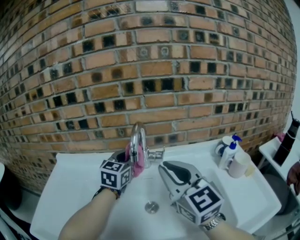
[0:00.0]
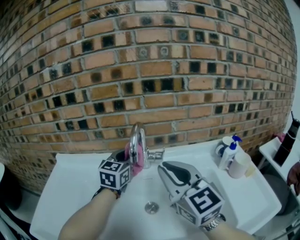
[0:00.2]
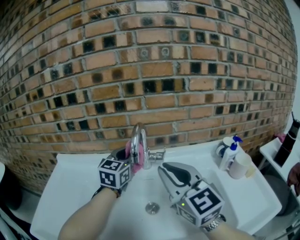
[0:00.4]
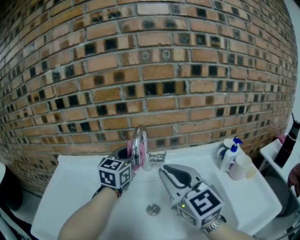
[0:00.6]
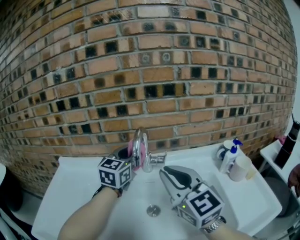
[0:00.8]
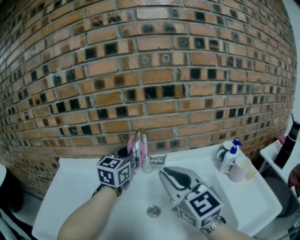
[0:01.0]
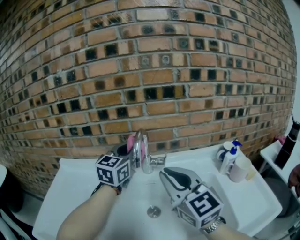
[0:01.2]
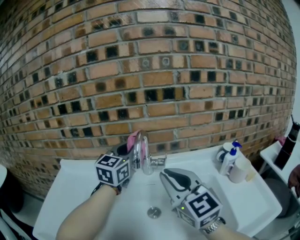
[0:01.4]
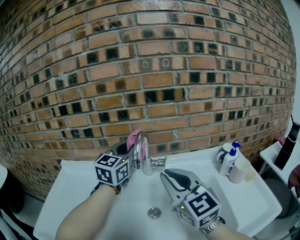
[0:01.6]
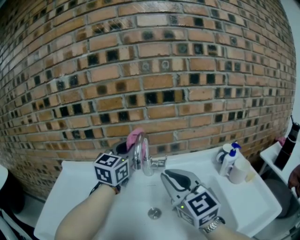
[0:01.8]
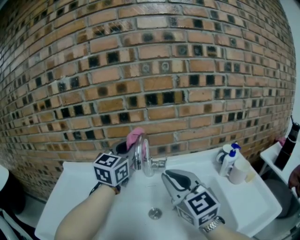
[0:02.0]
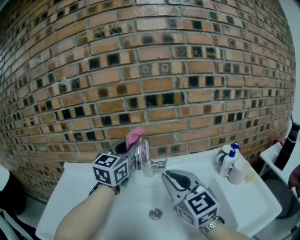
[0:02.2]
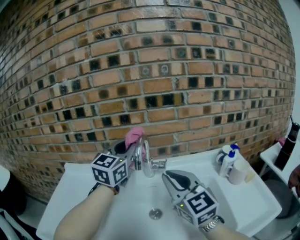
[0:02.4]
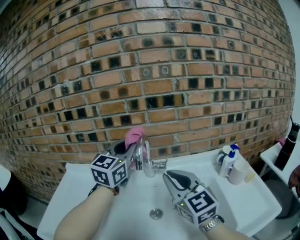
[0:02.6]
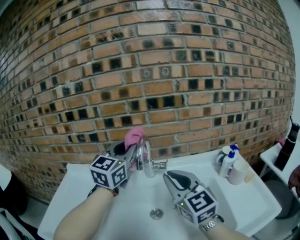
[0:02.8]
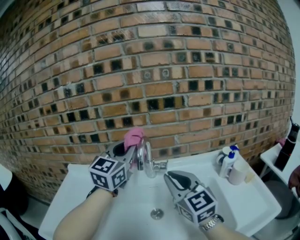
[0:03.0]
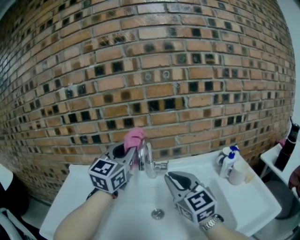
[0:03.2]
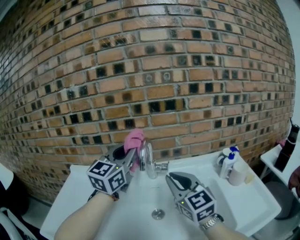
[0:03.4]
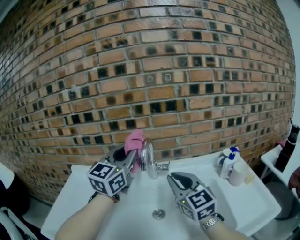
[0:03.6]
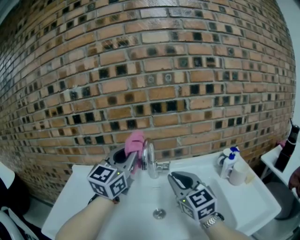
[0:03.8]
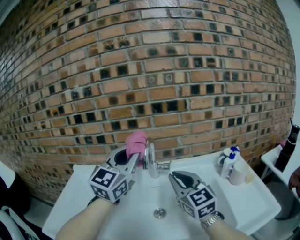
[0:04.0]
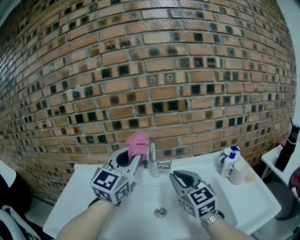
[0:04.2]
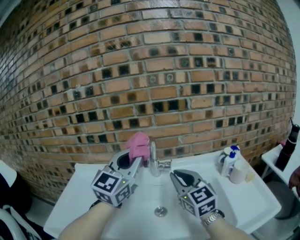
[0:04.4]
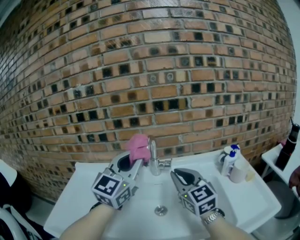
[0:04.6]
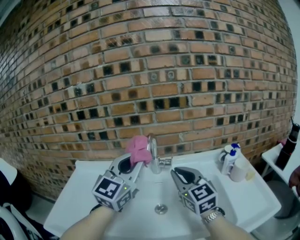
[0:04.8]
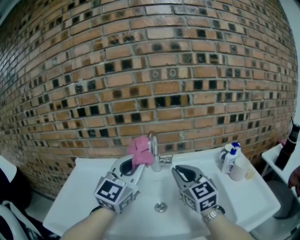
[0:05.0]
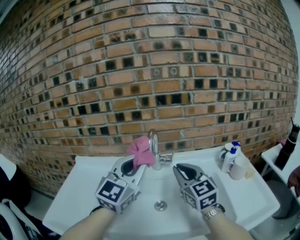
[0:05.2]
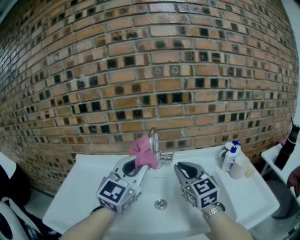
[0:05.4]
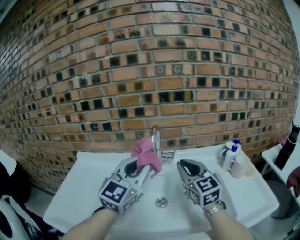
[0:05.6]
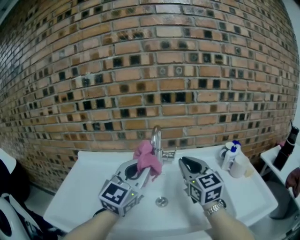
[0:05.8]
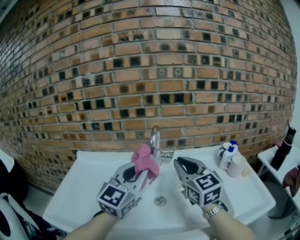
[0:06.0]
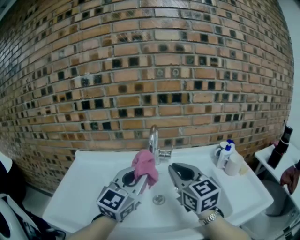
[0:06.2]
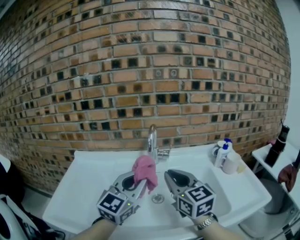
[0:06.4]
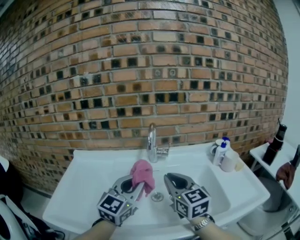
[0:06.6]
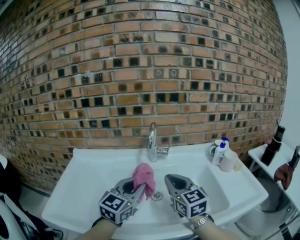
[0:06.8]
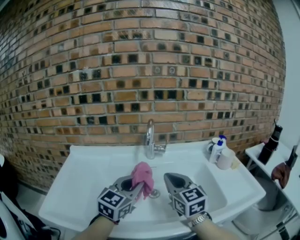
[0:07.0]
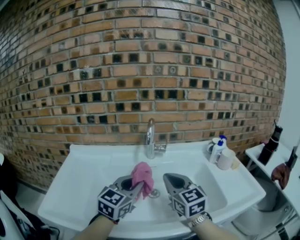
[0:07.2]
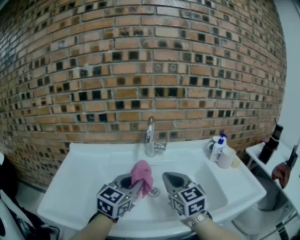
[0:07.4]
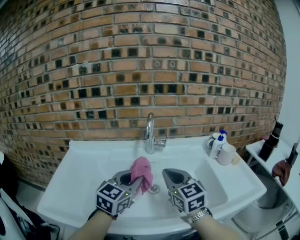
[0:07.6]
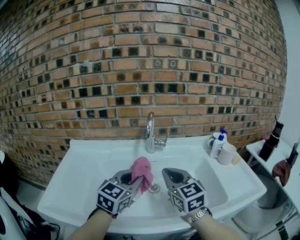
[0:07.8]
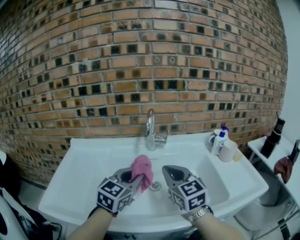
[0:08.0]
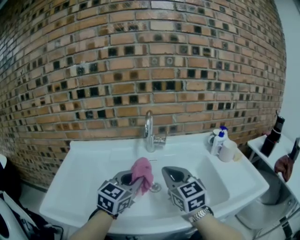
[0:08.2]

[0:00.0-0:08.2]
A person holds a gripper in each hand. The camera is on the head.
0:00.0 to 0:01.6: The left gripper shifts approximately 10 cm upward.
0:01.6 to 0:03.2: The left gripper is displaced backward and upward by roughly 10 cm.
0:03.2 to 0:05.0: The left gripper moves backward, some 10 cm.
0:05.0 to 0:06.6: The right gripper heads backward, covering roughly 10 cm. The left gripper heads downward and backward, covering approximately 10 cm.
0:06.6 to 0:08.2: The left gripper shifts approximately 5 cm downward.

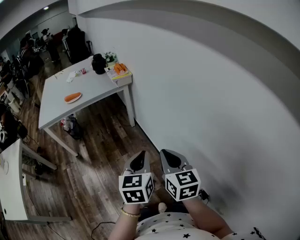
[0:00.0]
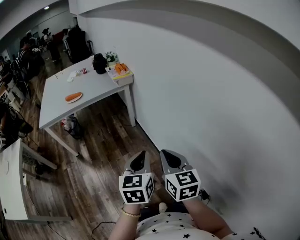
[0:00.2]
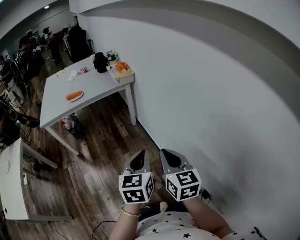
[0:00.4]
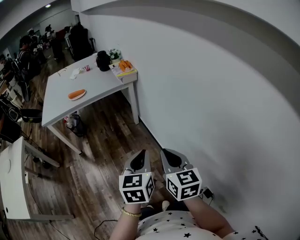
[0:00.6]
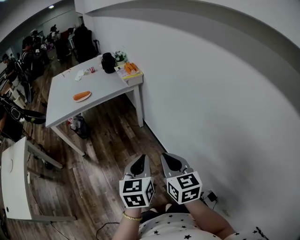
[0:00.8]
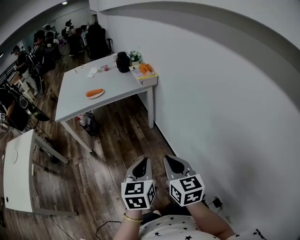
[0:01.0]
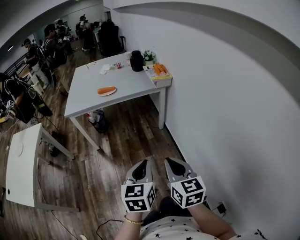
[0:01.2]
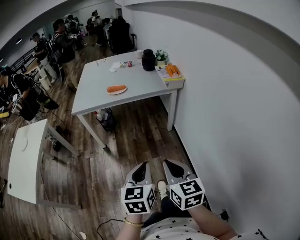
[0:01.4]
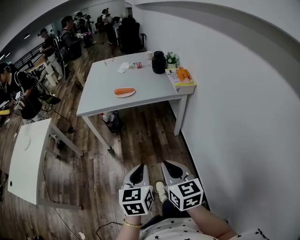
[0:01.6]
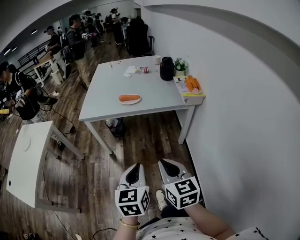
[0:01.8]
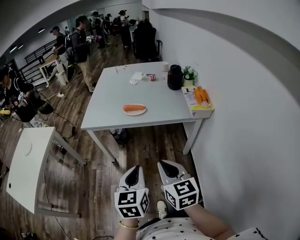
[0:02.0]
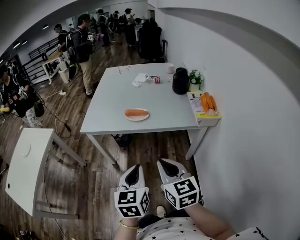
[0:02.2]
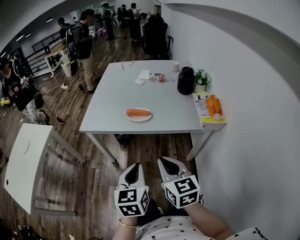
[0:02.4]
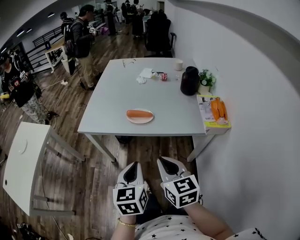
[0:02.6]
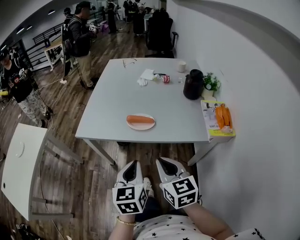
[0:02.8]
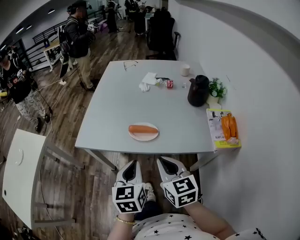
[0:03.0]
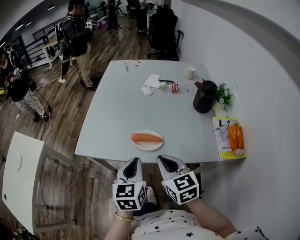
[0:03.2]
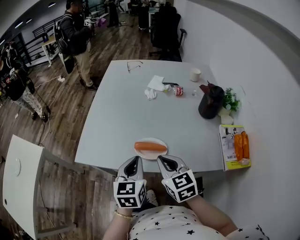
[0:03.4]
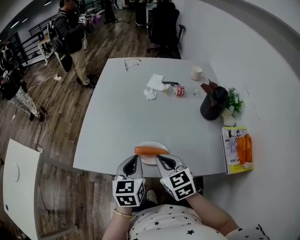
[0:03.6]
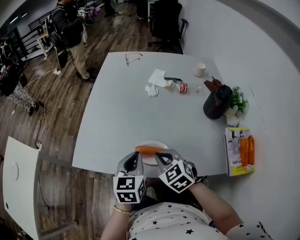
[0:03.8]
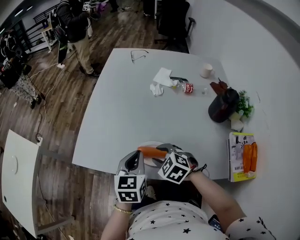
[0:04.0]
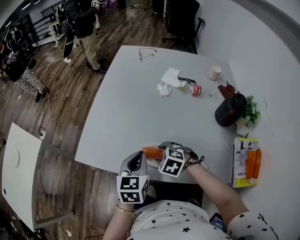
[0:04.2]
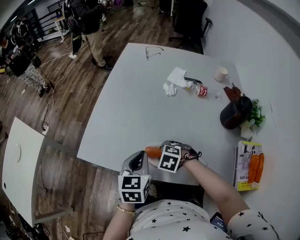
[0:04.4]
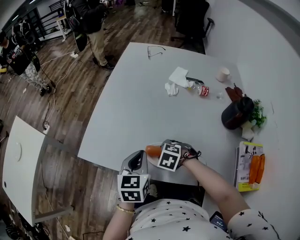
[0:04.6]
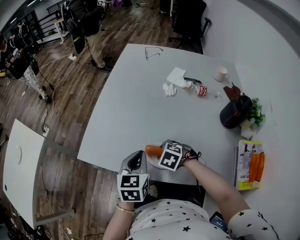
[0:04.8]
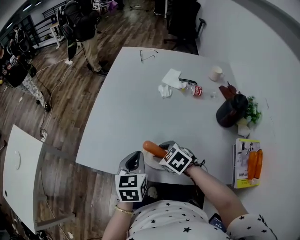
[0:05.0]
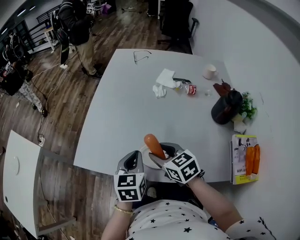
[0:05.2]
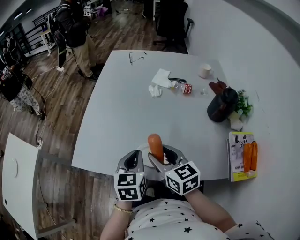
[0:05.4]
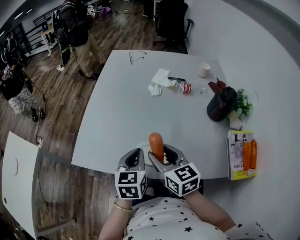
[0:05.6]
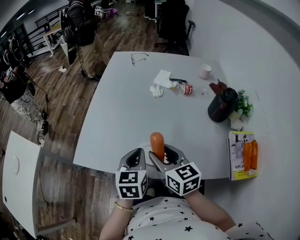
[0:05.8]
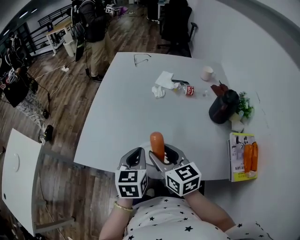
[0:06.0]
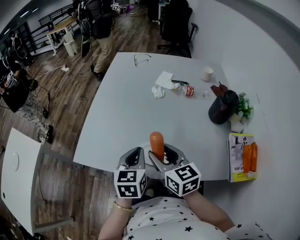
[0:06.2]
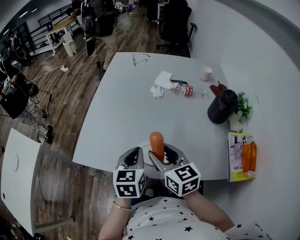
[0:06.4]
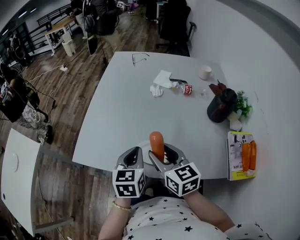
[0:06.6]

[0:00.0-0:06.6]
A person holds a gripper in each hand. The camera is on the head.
0:00.0 to 0:01.6: The two grippers go about 30 cm to the left and forward. The right gripper swivels some 20 degrees. The left gripper changes its angle by approximately 20 degrees.
0:01.6 to 0:03.2: Both grippers are carried forward, about 60 cm. The right gripper rotates some 20 degrees.
0:03.2 to 0:05.0: The left gripper is displaced forward by about 15 cm. The right gripper travels forward and downward by roughly 25 cm, points its fingers some 30 degrees further downward, and opens up.
0:05.0 to 0:06.6: The right gripper travels upward by approximately 15 cm, and tilts its fingers approximately 40 degrees upward.

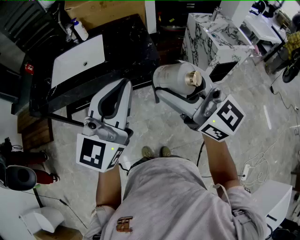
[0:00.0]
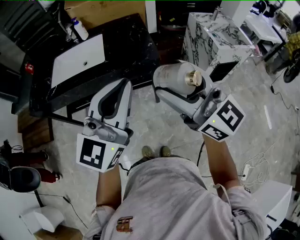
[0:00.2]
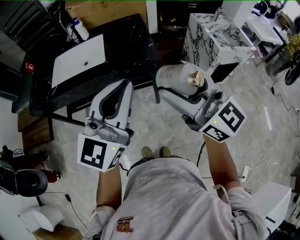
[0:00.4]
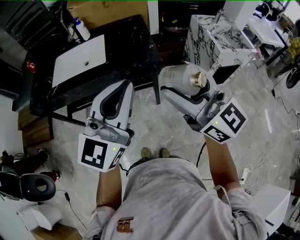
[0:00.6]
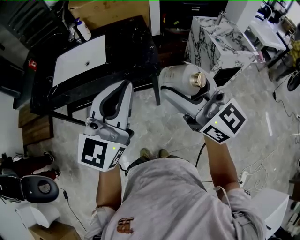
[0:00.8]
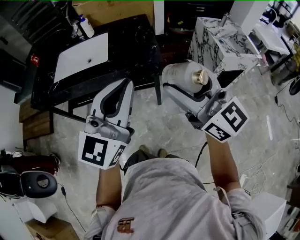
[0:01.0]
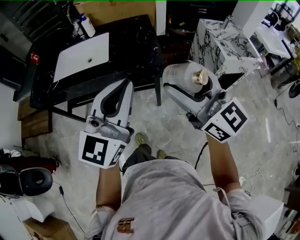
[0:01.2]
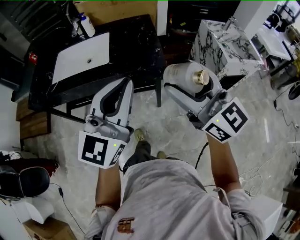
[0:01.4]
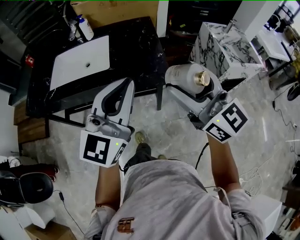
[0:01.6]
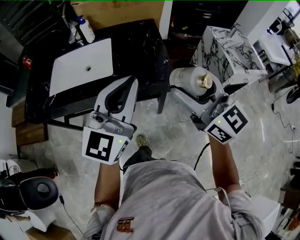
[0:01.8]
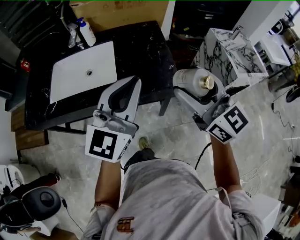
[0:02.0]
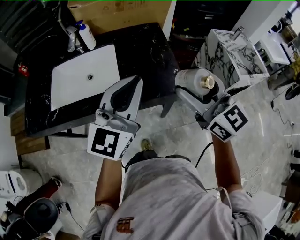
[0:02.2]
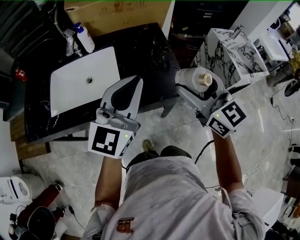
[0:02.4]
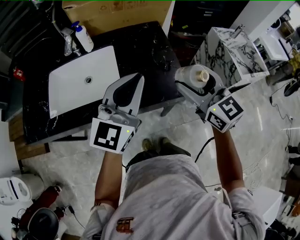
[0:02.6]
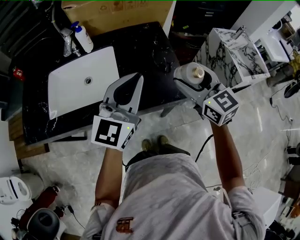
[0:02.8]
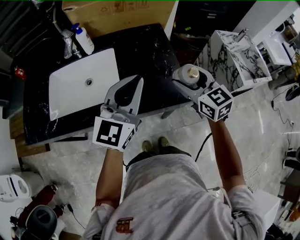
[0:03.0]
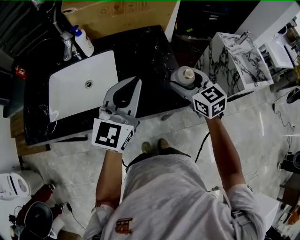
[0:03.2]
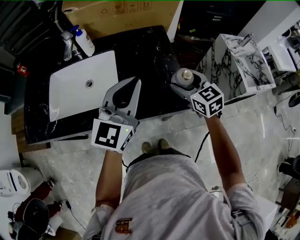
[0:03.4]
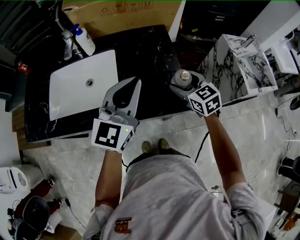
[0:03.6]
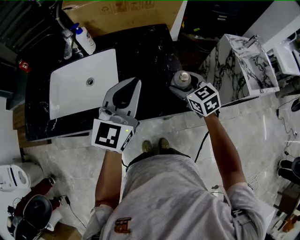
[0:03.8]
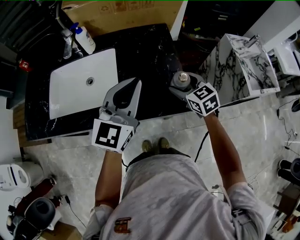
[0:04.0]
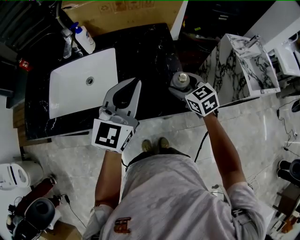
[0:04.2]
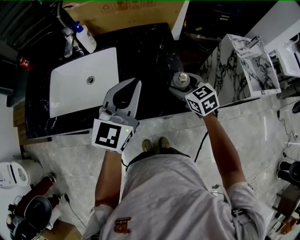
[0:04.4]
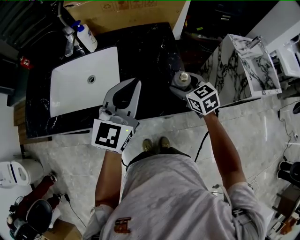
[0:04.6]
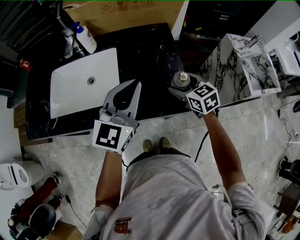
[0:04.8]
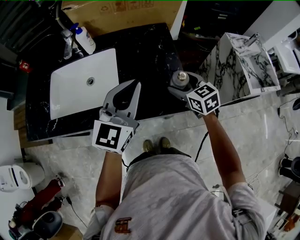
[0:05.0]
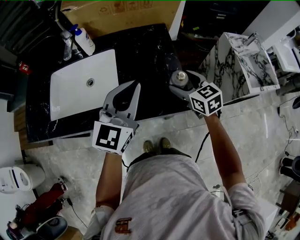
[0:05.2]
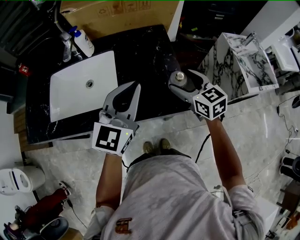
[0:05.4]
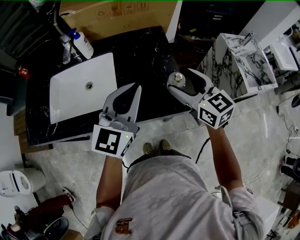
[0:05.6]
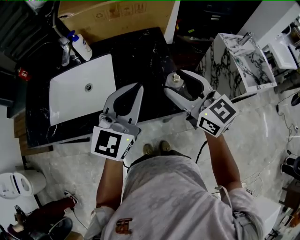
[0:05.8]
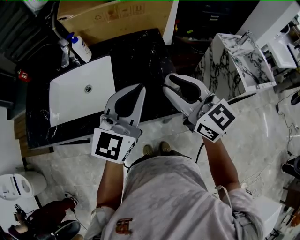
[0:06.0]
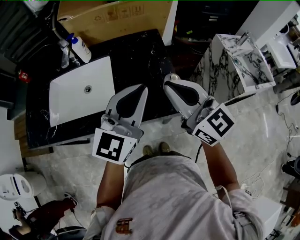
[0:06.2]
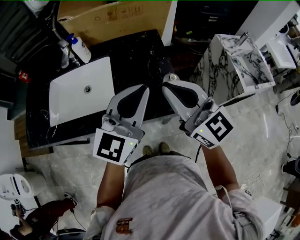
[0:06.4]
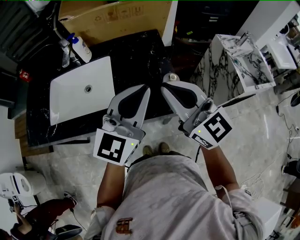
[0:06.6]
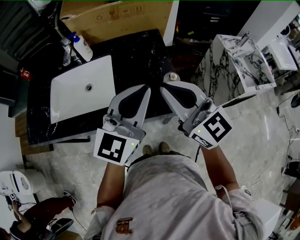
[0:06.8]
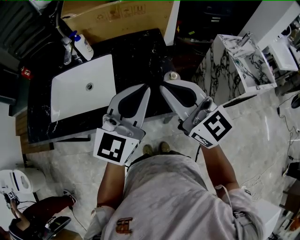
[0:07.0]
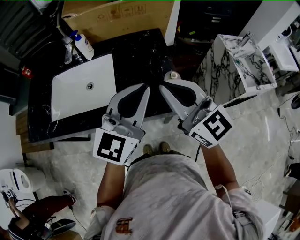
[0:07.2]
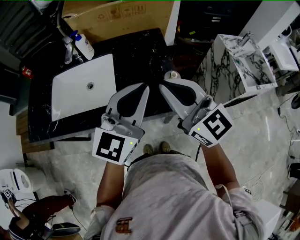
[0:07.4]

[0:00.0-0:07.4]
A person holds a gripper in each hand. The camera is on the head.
0:00.0 to 0:01.4: Both grippers travel together forward, roughly 5 cm.
0:01.4 to 0:03.0: The left gripper is displaced forward by some 25 cm. Meanwhile the right gripper heads forward and downward, covering some 35 cm, and rotates some 30 degrees.
0:03.0 to 0:04.4: The right gripper heads downward and forward, covering about 15 cm.
0:04.4 to 0:06.0: The right gripper goes approximately 20 cm upward, tilts its fingers about 30 degrees upward, and closes up. The left gripper moves approximately 5 cm.
0:06.0 to 0:07.4: The right gripper closes.

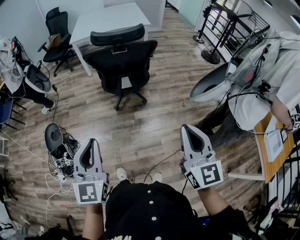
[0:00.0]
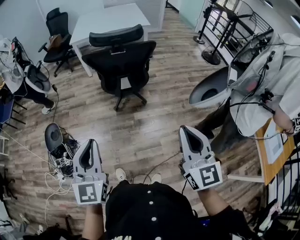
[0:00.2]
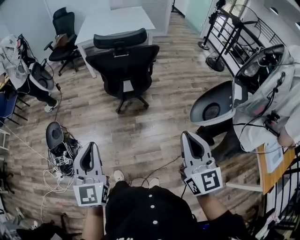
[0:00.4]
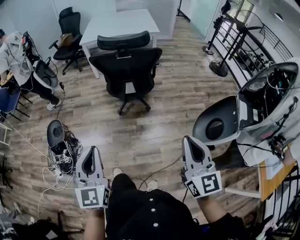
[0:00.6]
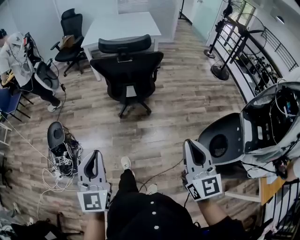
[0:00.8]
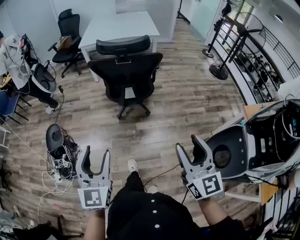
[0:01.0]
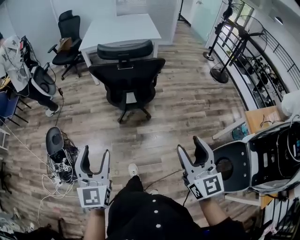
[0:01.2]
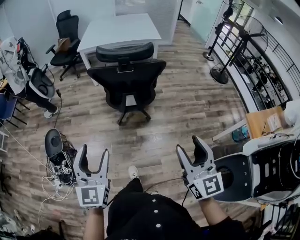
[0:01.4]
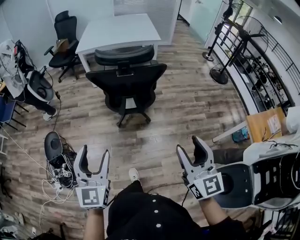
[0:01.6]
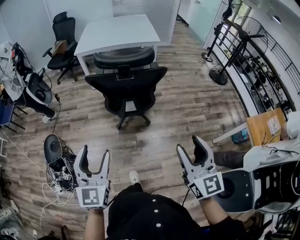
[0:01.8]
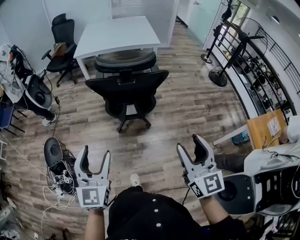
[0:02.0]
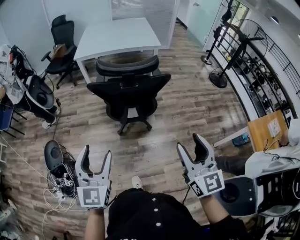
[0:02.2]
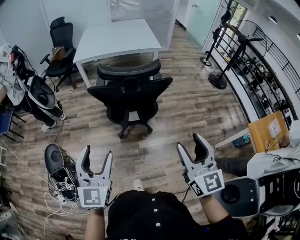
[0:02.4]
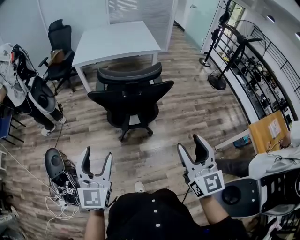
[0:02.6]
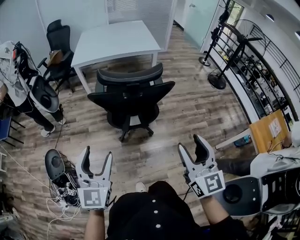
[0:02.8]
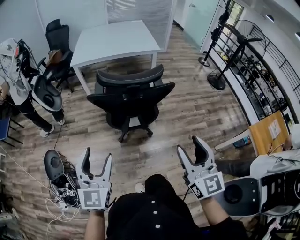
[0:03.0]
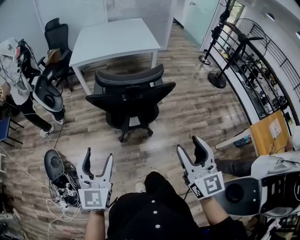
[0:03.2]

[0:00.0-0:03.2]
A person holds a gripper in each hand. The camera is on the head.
0:00.0 to 0:01.6: The two grippers go approximately 10 cm forward. The left gripper opens. The right gripper opens up.
0:01.6 to 0:03.2: Both grippers move forward, about 15 cm.
